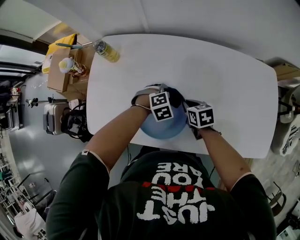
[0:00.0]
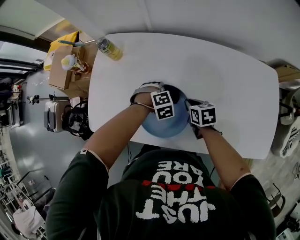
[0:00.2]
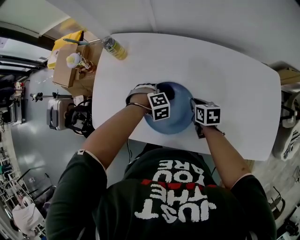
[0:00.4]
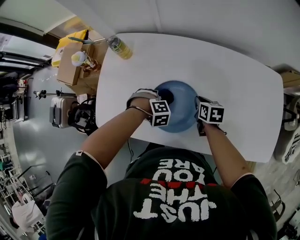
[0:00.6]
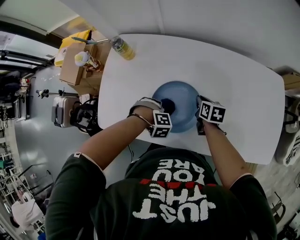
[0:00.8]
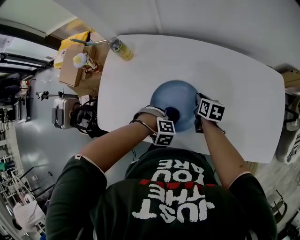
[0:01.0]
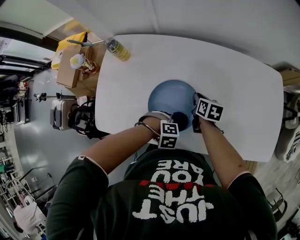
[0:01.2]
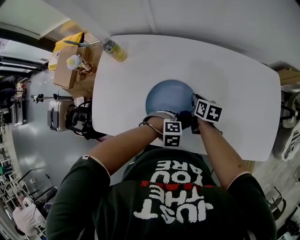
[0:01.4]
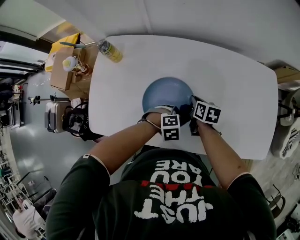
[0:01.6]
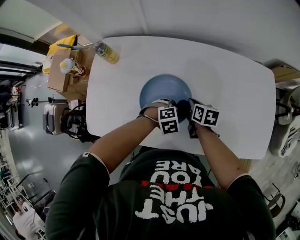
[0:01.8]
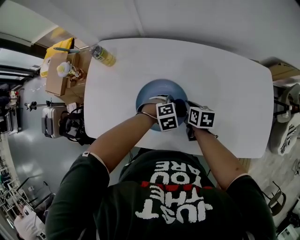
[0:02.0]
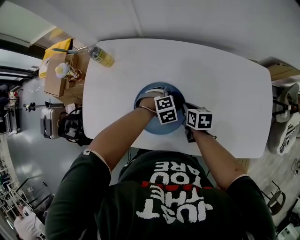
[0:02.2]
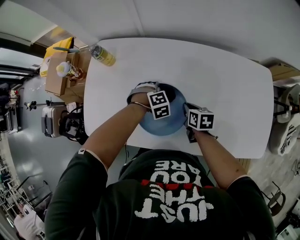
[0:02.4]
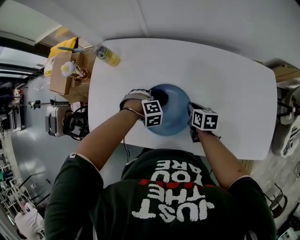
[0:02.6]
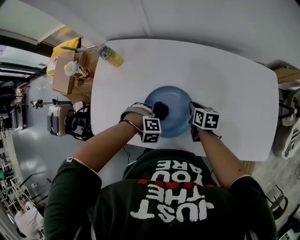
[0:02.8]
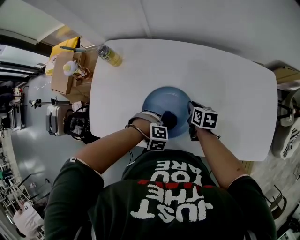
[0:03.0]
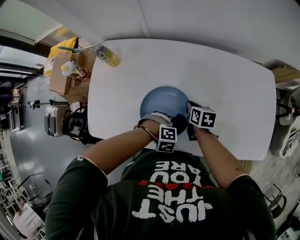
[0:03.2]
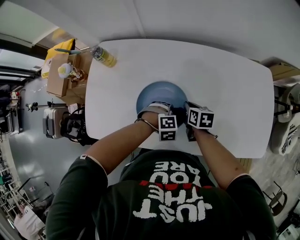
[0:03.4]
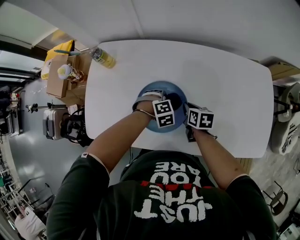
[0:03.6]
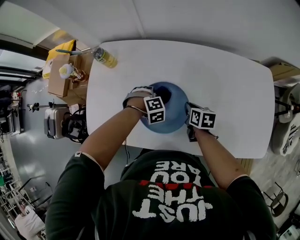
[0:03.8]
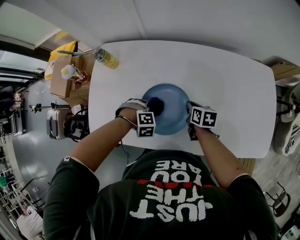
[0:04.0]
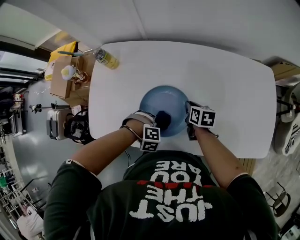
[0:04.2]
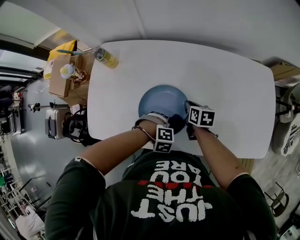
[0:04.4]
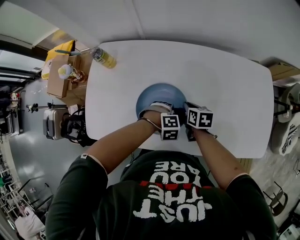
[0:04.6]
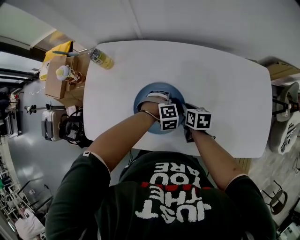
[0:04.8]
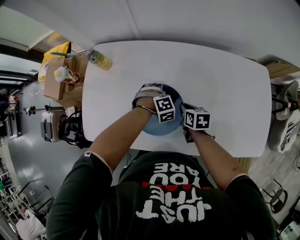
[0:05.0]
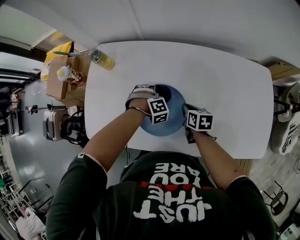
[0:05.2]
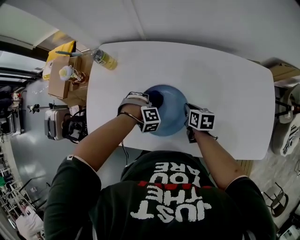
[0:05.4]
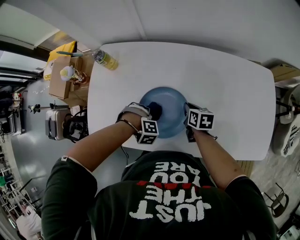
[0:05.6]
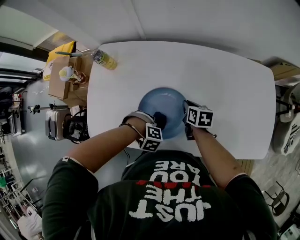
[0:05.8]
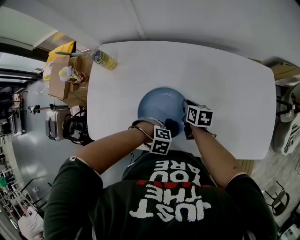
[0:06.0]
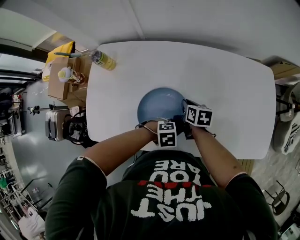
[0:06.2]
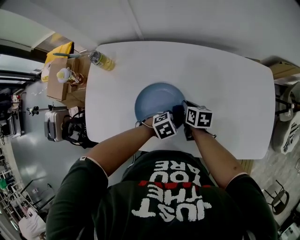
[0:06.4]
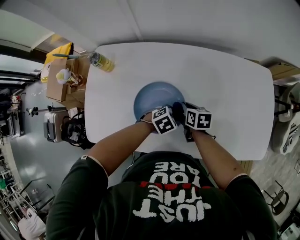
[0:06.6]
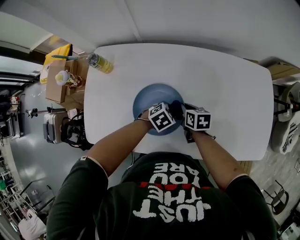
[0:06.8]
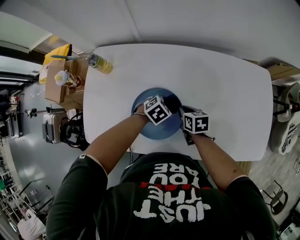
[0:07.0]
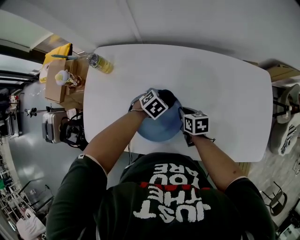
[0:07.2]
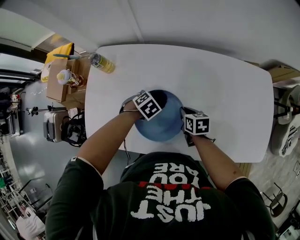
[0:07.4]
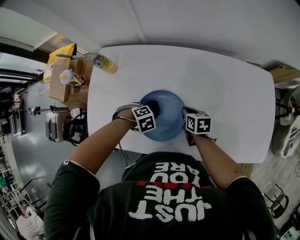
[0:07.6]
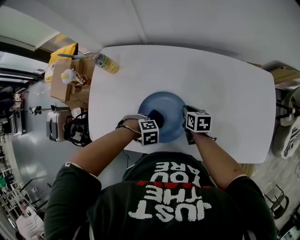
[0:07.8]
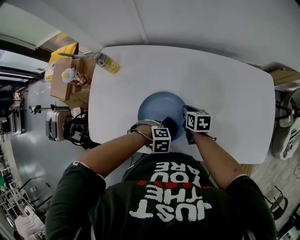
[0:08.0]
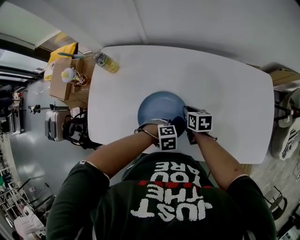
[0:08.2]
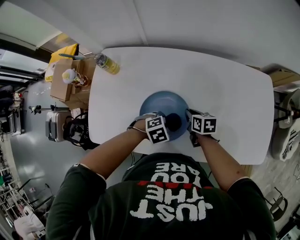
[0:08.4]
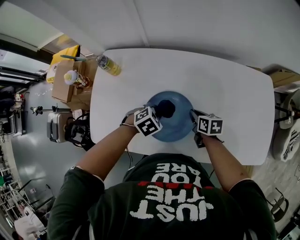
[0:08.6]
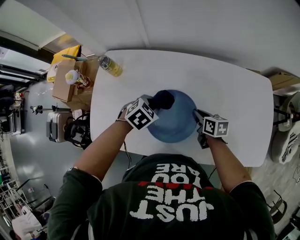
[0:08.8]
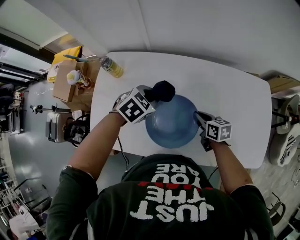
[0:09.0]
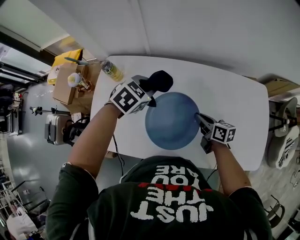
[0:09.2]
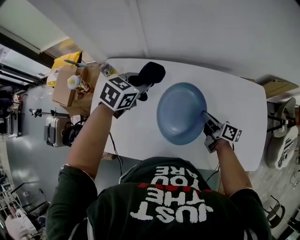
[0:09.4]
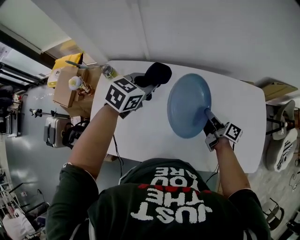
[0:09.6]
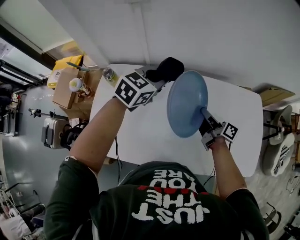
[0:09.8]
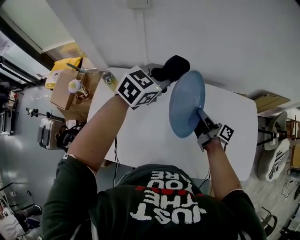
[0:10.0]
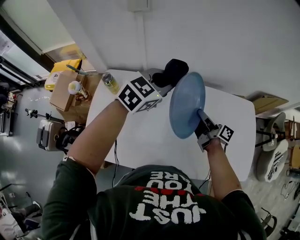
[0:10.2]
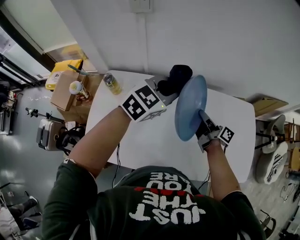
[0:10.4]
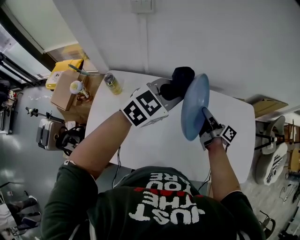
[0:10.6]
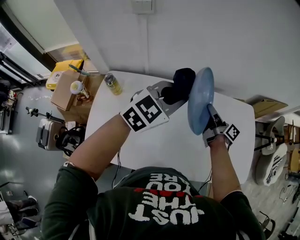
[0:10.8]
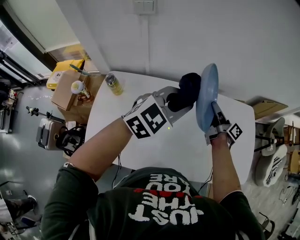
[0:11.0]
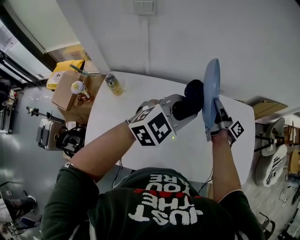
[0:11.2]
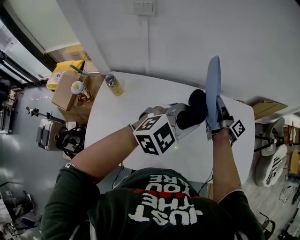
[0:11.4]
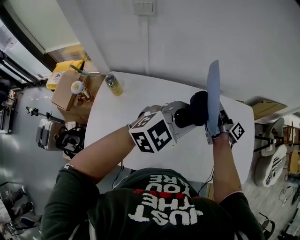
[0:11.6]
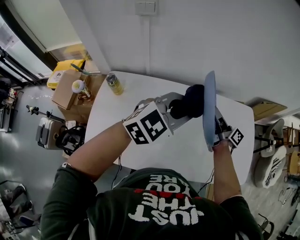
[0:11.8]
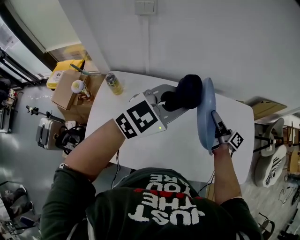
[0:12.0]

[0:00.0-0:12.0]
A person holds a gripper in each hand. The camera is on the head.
0:00.0 to 0:01.6: The left gripper changes place by roughly 10 cm, while the right gripper shifts by some 5 cm, and swivels roughly 30 degrees.
0:01.6 to 0:03.0: The left gripper turns by about 20 degrees.
0:06.0 to 0:07.6: The left gripper shifts by about 15 cm, and rotates some 30 degrees.
0:07.6 to 0:09.0: The right gripper heads upward, covering some 5 cm. Meanwhile the left gripper travels upward by about 15 cm, and tips its fingers upward by some 30 degrees.
0:09.0 to 0:10.4: The right gripper shifts approximately 15 cm upward and forward, and tilts its fingers approximately 40 degrees upward. Meanwhile the left gripper moves upward and to the right, some 20 cm, and angles its fingers upward, by approximately 30 degrees.
0:10.4 to 0:12.0: The right gripper shifts some 5 cm upward. Meanwhile the left gripper is displaced backward and upward by approximately 10 cm.

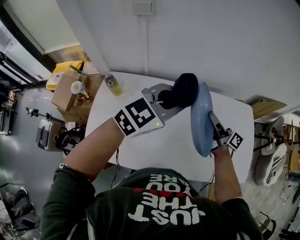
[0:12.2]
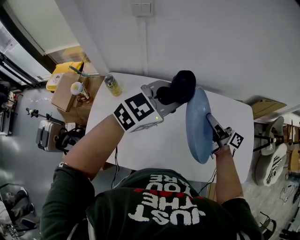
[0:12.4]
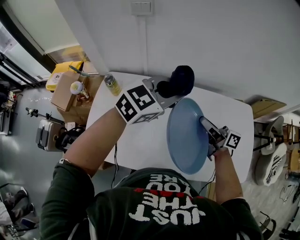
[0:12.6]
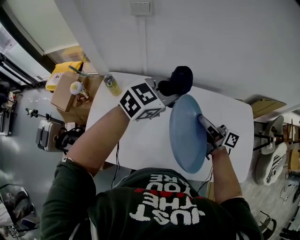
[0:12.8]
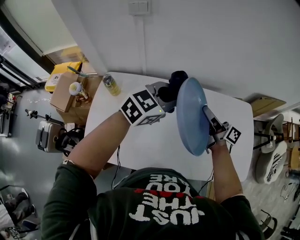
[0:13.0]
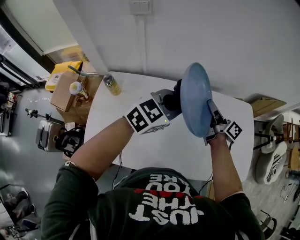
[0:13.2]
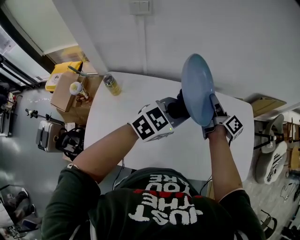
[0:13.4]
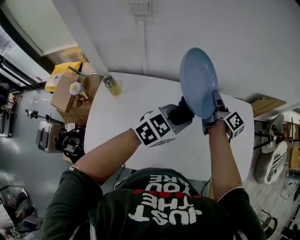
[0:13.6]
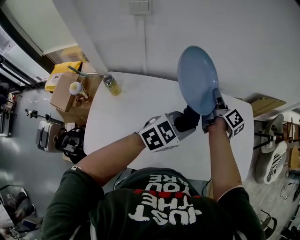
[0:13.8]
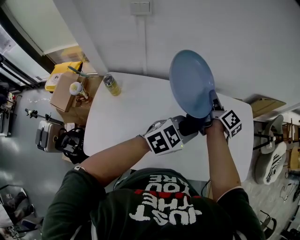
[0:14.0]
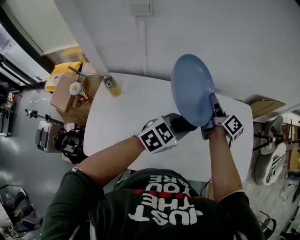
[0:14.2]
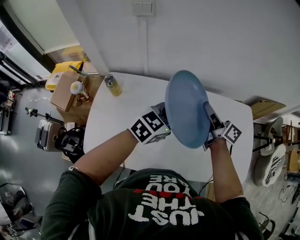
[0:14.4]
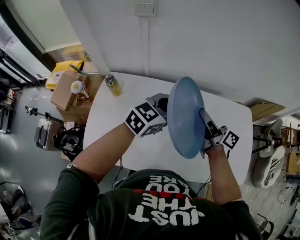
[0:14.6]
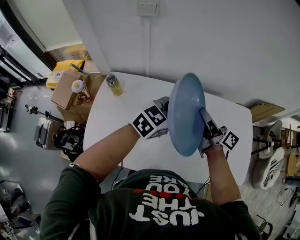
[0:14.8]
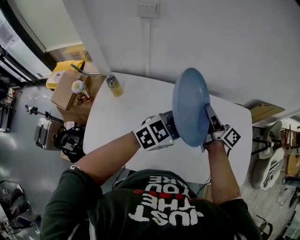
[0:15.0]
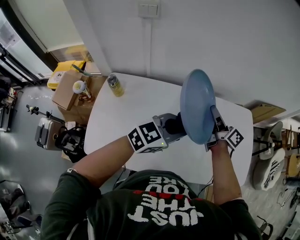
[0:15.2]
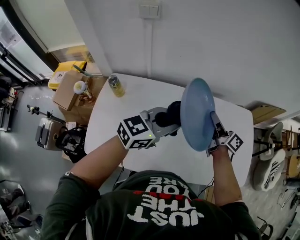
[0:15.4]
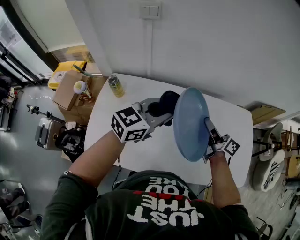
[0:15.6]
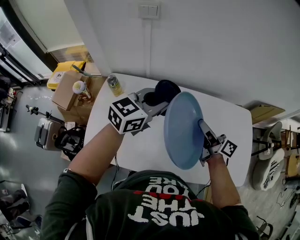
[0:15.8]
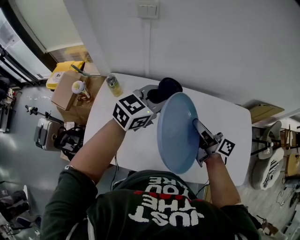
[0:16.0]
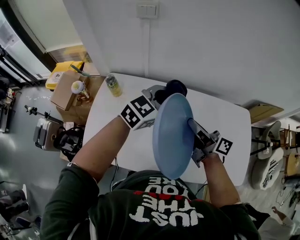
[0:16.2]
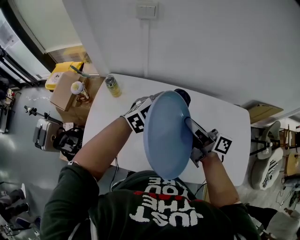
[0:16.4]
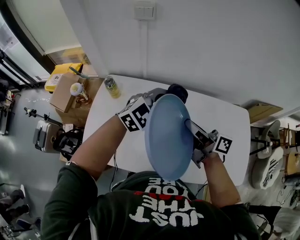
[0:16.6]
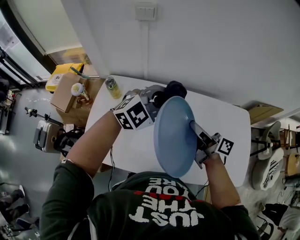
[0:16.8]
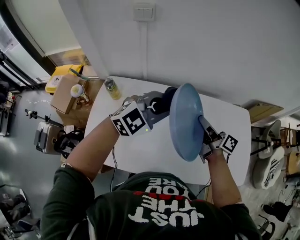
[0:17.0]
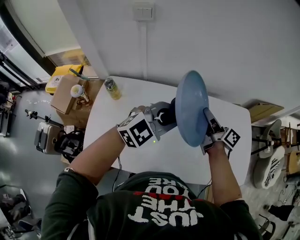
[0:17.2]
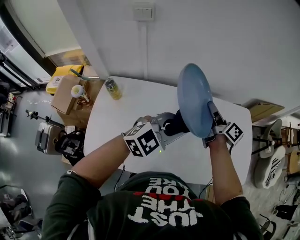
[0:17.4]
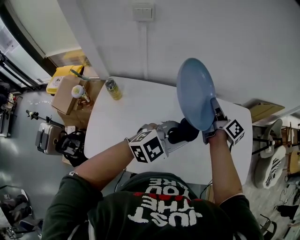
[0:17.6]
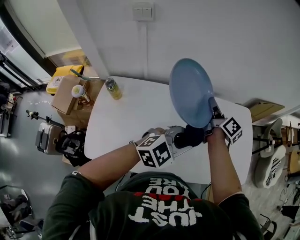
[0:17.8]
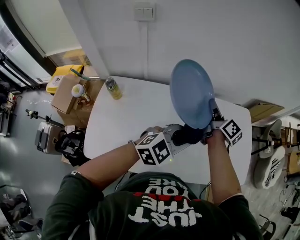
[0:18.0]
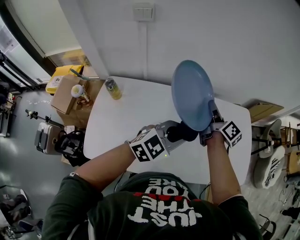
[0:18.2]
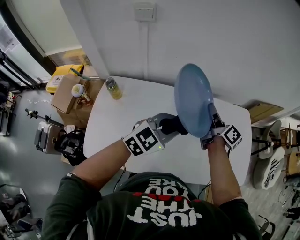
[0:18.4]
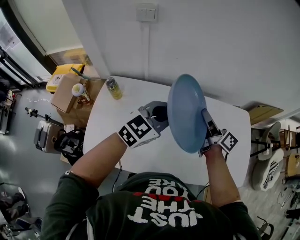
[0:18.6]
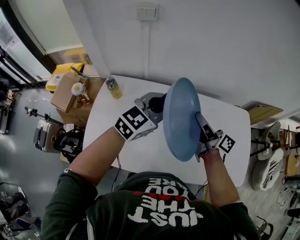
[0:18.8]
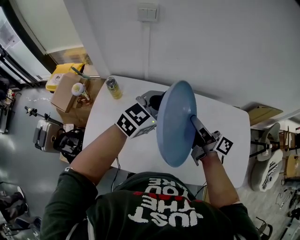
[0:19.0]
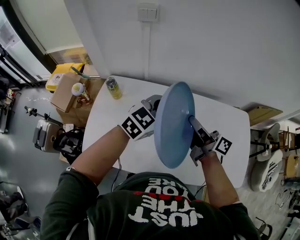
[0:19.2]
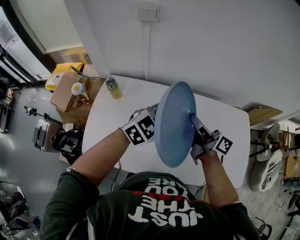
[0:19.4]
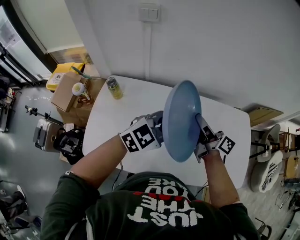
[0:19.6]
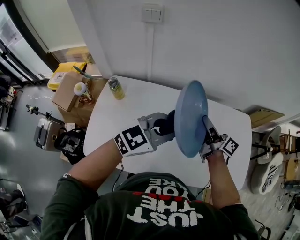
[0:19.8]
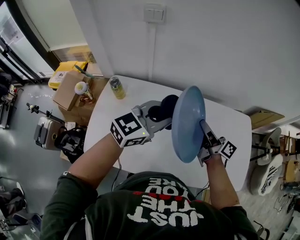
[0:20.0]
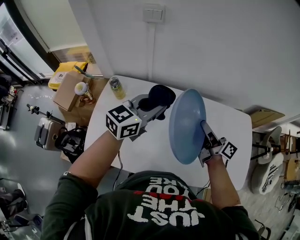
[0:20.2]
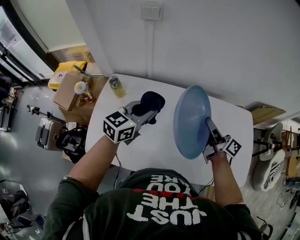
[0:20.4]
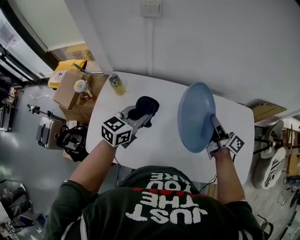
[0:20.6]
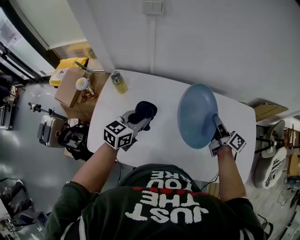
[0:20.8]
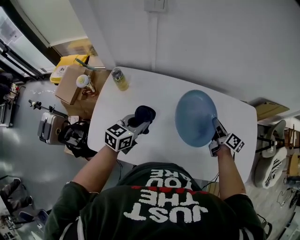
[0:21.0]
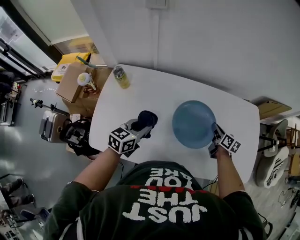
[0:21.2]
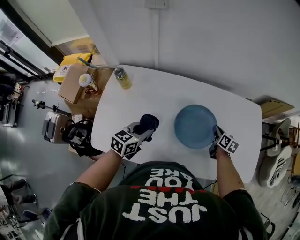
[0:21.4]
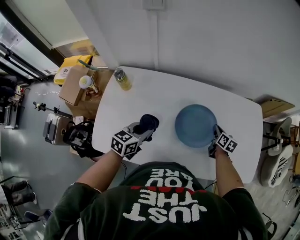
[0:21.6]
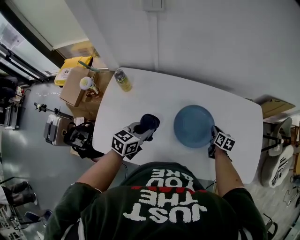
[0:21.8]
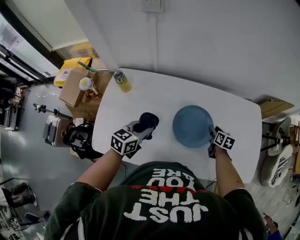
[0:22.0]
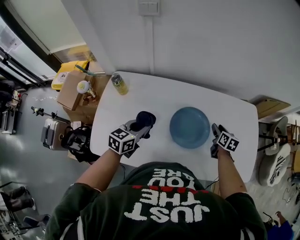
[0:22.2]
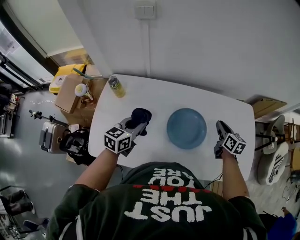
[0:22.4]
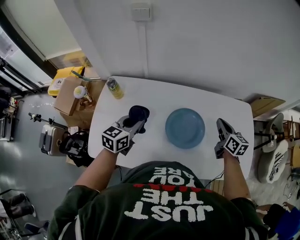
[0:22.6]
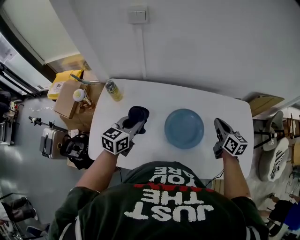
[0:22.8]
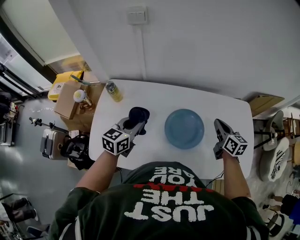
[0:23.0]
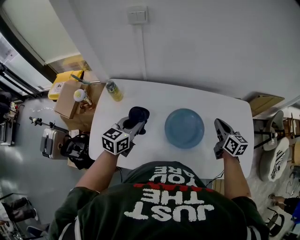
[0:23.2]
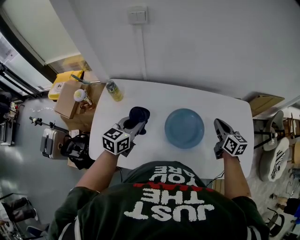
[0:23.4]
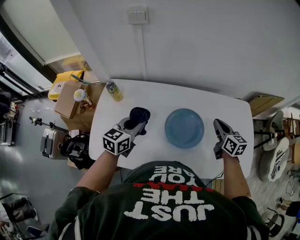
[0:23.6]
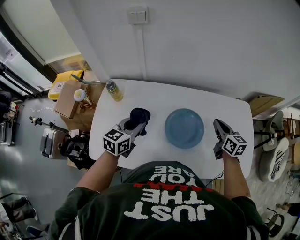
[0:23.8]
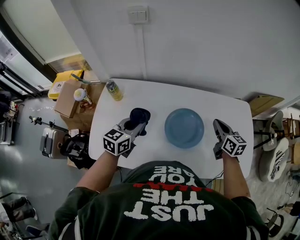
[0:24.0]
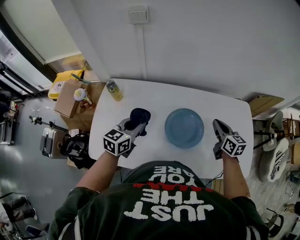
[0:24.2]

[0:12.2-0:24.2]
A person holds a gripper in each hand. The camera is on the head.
0:12.2 to 0:13.8: The right gripper moves roughly 10 cm, and swivels some 30 degrees. Meanwhile the left gripper moves downward, about 10 cm.
0:13.8 to 0:15.2: The right gripper shifts approximately 5 cm backward, while the left gripper travels to the left and back again, some 10 cm each way.
0:15.2 to 0:16.6: The left gripper is displaced forward and to the left by approximately 10 cm, and swivels roughly 30 degrees, while the right gripper goes about 15 cm to the left and backward, and rotates about 30 degrees.
0:16.6 to 0:18.2: The left gripper shifts by approximately 10 cm, while the right gripper ends up roughly 15 cm from where it was, and rotates approximately 40 degrees.
0:18.2 to 0:19.8: The right gripper travels backward by some 5 cm, and rotates roughly 20 degrees; the left gripper travels to the left and upward by approximately 10 cm.
0:19.8 to 0:21.2: The left gripper goes some 20 cm downward and to the left, and turns by some 40 degrees; the right gripper travels downward and to the right by about 20 cm, and points its fingers some 30 degrees further downward.
0:21.2 to 0:22.6: The left gripper shifts about 5 cm upward. Meanwhile the right gripper heads upward, covering some 15 cm, changes its angle by roughly 20 degrees, and opens, then closes again.
0:22.6 to 0:24.2: The grippers stay close to where they were, moving slightly.
